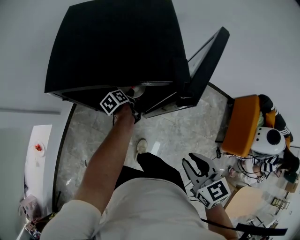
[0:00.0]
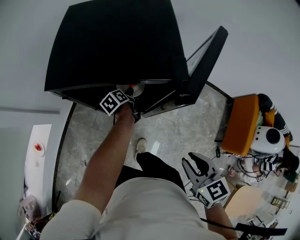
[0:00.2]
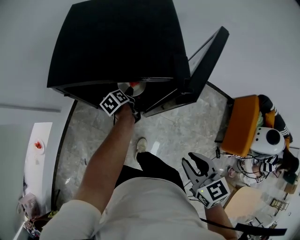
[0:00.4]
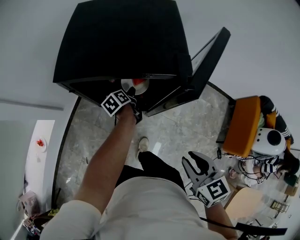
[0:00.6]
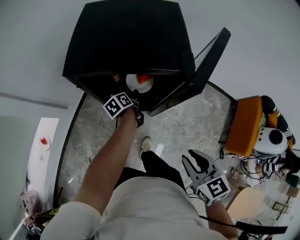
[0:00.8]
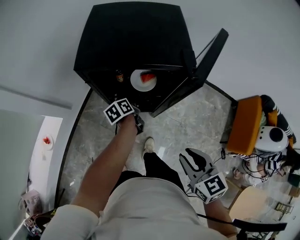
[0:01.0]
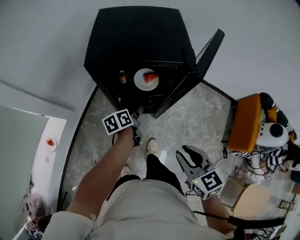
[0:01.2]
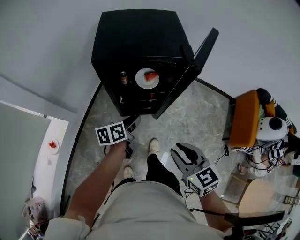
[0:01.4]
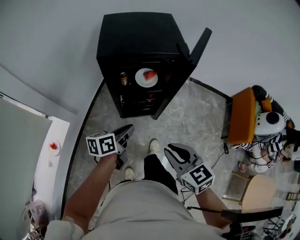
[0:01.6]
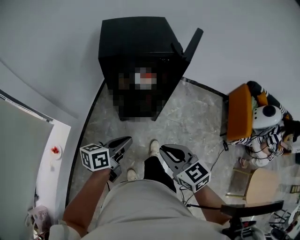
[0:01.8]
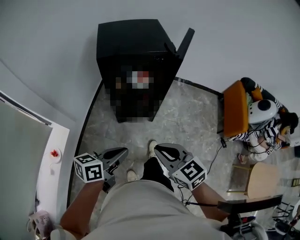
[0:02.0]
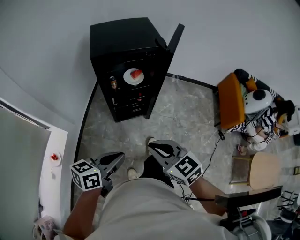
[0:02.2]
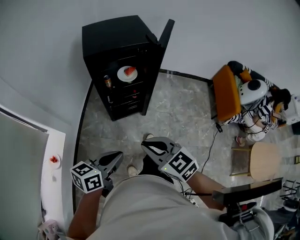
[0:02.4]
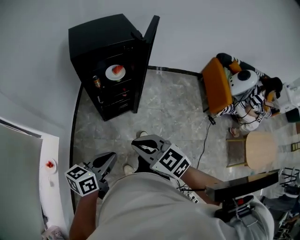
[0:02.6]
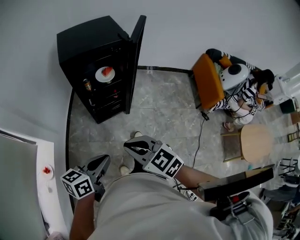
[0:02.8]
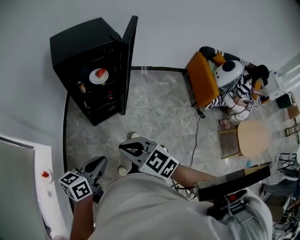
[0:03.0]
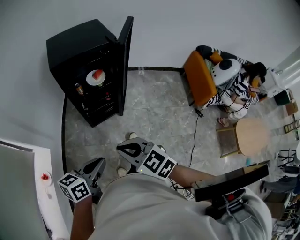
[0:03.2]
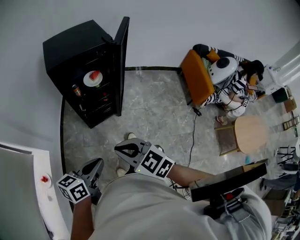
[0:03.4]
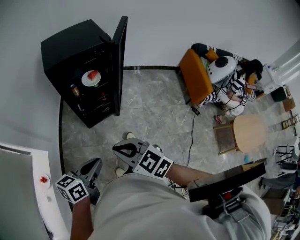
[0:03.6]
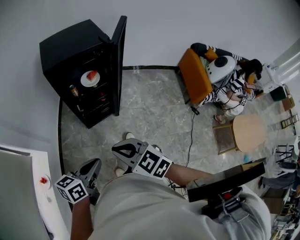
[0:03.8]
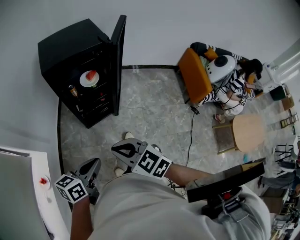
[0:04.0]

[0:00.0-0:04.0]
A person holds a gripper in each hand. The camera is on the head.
0:00.0 to 0:01.4: The right gripper shifts by about 15 cm.
0:01.4 to 0:02.6: The right gripper ends up roughly 20 cm from where it was, and closes.

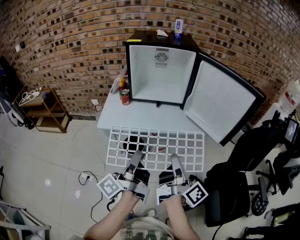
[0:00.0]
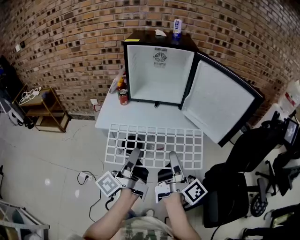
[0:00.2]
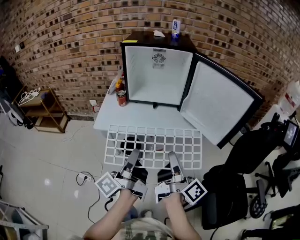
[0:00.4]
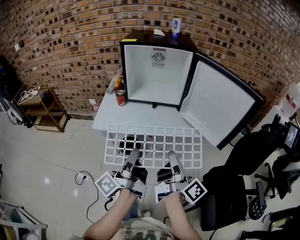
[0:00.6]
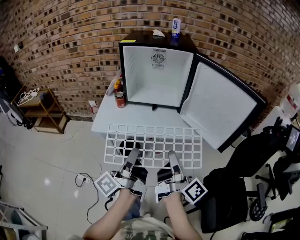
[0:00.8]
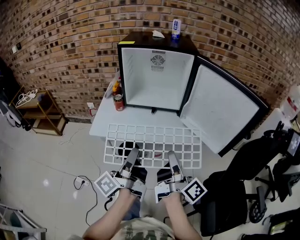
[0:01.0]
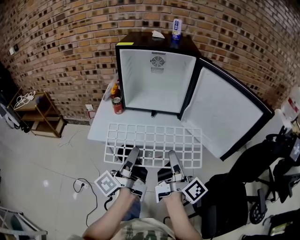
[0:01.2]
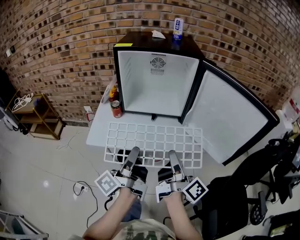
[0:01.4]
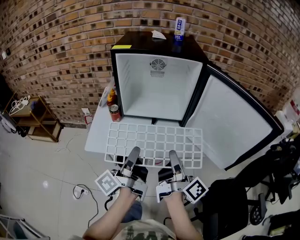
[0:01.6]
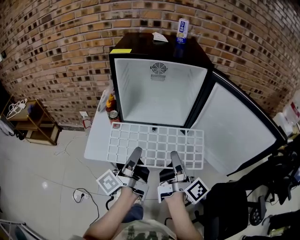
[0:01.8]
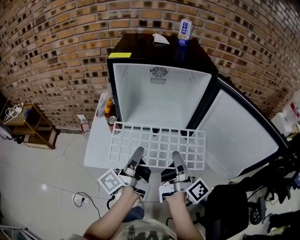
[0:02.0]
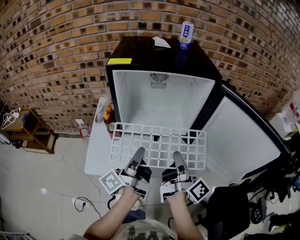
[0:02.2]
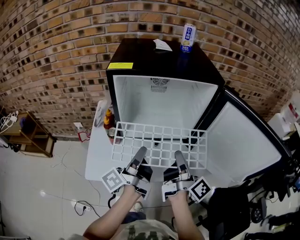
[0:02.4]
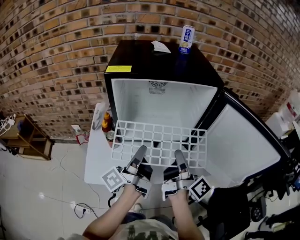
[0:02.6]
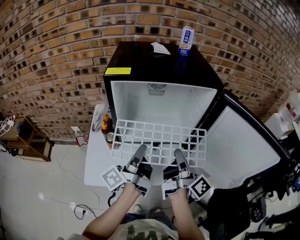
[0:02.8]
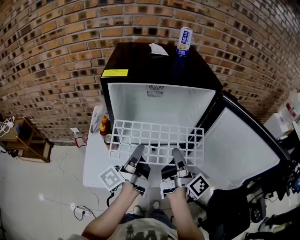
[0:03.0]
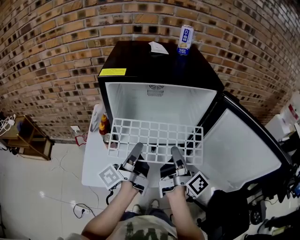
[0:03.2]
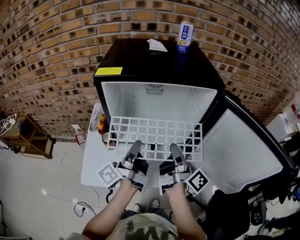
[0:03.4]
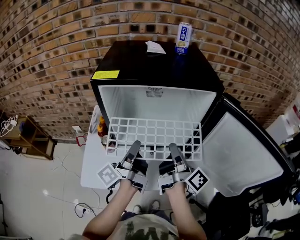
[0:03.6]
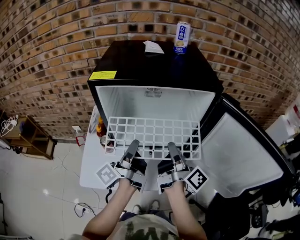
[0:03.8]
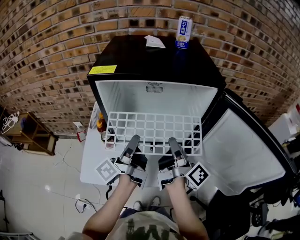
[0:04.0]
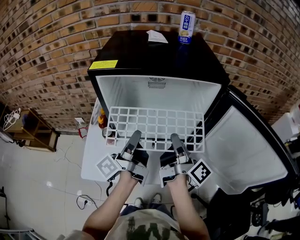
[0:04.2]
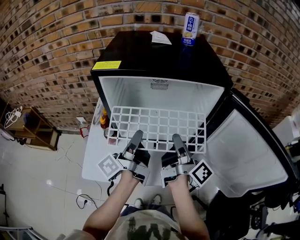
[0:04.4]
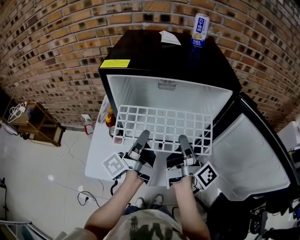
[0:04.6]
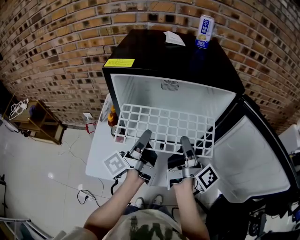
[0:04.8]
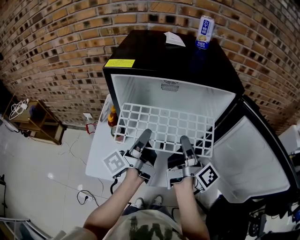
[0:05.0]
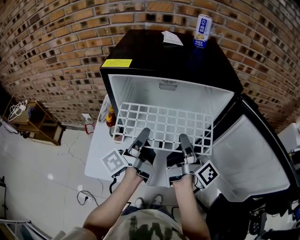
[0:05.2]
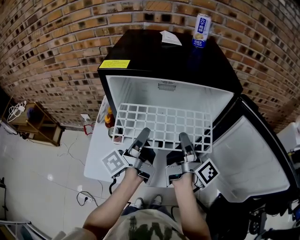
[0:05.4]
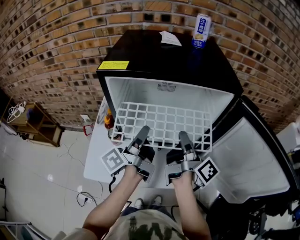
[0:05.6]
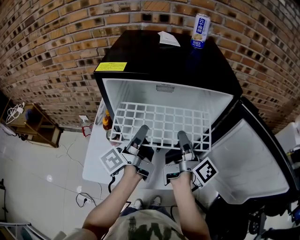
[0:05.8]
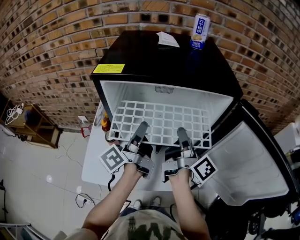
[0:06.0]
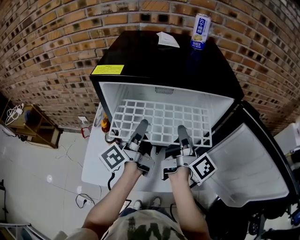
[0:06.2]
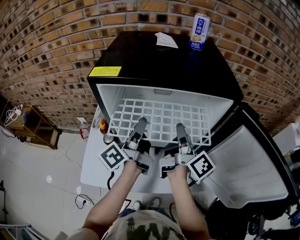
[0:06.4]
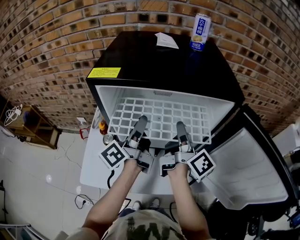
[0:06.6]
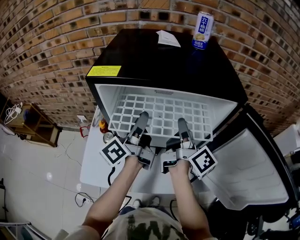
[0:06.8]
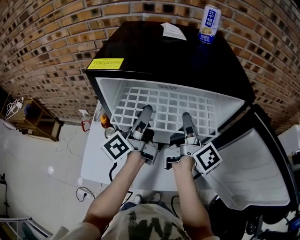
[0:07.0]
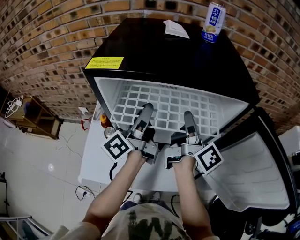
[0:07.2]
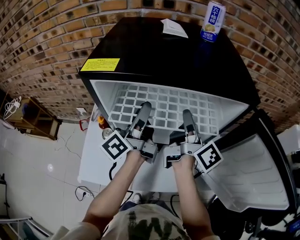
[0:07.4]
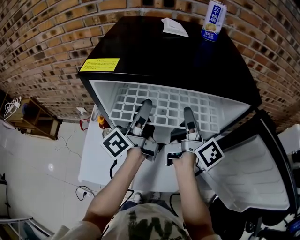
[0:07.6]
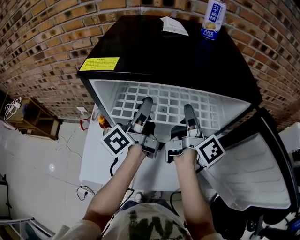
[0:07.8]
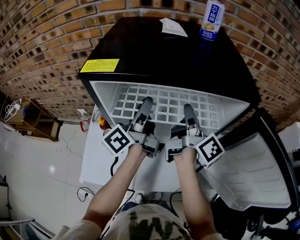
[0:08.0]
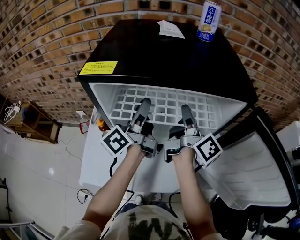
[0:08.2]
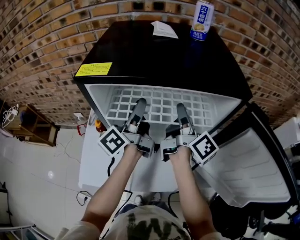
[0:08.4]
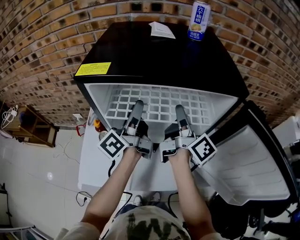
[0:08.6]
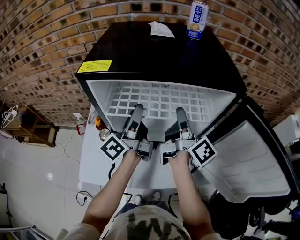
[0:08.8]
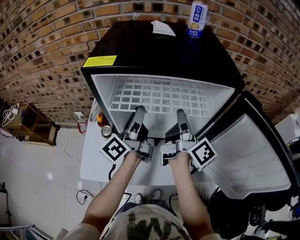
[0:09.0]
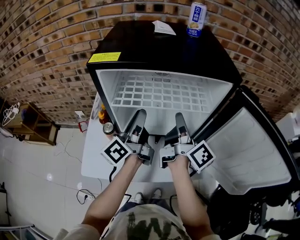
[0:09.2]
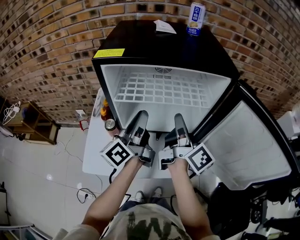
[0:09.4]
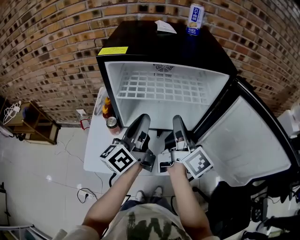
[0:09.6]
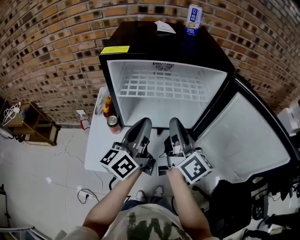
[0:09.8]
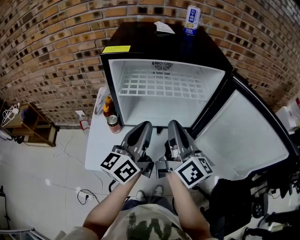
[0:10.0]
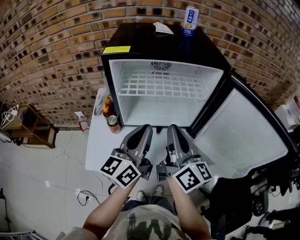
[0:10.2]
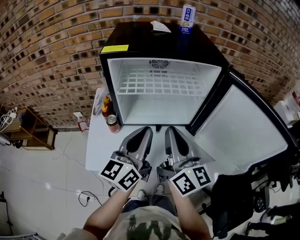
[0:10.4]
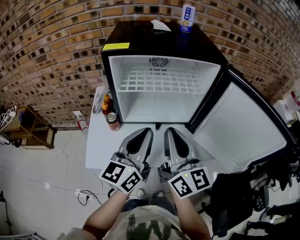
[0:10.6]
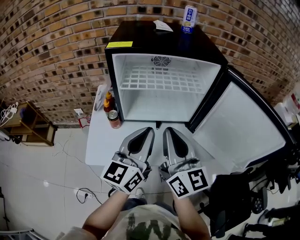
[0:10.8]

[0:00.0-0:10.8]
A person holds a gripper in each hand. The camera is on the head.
0:00.0 to 0:01.6: Both grippers travel together forward, some 20 cm.
0:01.6 to 0:03.0: Both grippers travel together forward, approximately 20 cm.
0:03.0 to 0:04.6: Both grippers travel together forward, roughly 5 cm.
0:04.6 to 0:06.2: Both grippers move forward, about 5 cm.
0:06.2 to 0:07.8: Both grippers travel together forward, some 10 cm.
0:07.8 to 0:09.2: The grippers both shift backward by some 10 cm.
0:09.2 to 0:10.8: The right gripper shifts approximately 20 cm backward and to the left, and twists approximately 50 degrees counterclockwise, seen from behind. The left gripper moves backward, roughly 15 cm, rotates around the line of its fingers by roughly 40 degrees, clockwise from behind, and closes.

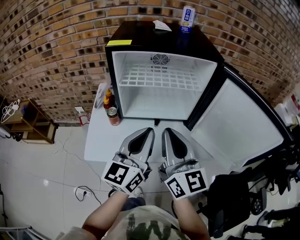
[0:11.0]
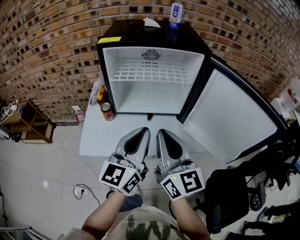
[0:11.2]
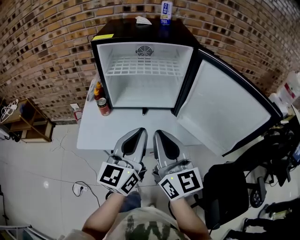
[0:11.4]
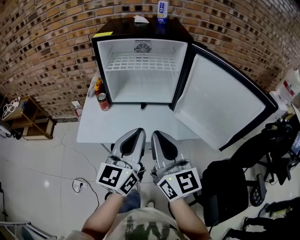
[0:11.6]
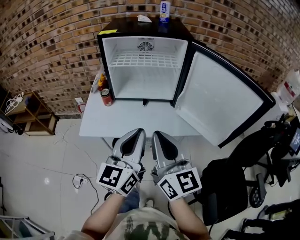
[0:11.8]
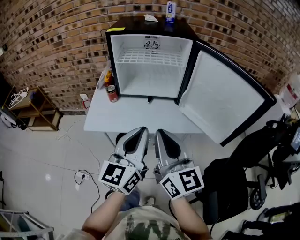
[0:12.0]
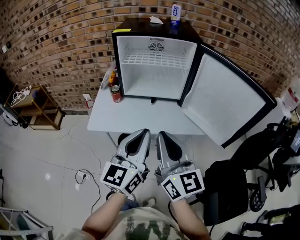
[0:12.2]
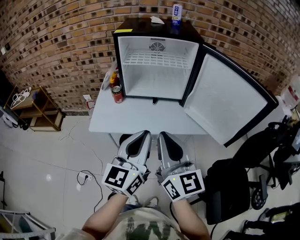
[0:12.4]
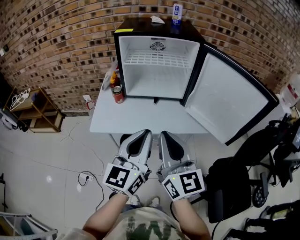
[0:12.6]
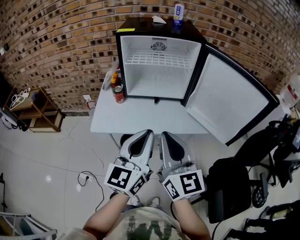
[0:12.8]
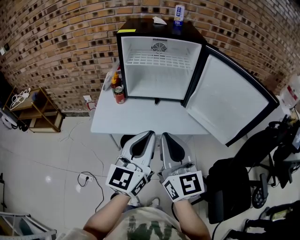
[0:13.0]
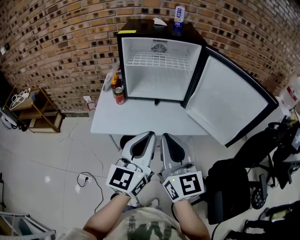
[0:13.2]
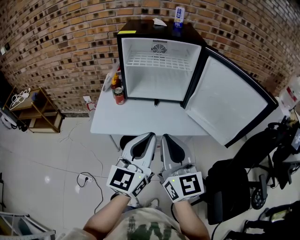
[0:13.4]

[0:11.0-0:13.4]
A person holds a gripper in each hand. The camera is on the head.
0:11.0 to 0:12.2: The two grippers go roughly 20 cm backward.
0:12.2 to 0:13.4: The grippers move only a little.

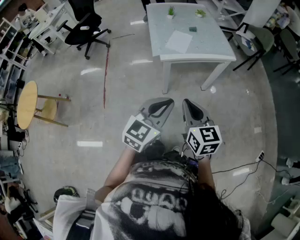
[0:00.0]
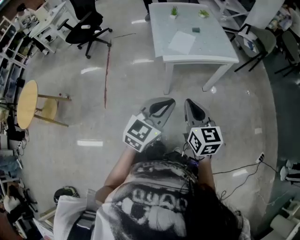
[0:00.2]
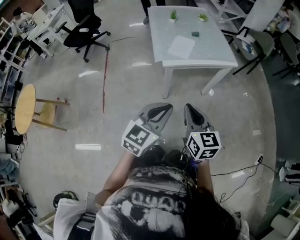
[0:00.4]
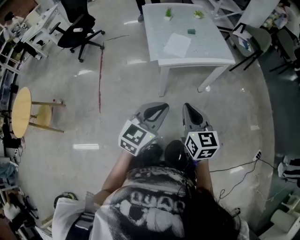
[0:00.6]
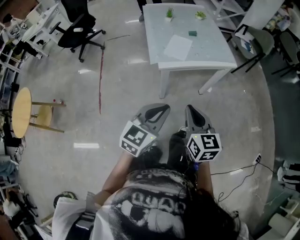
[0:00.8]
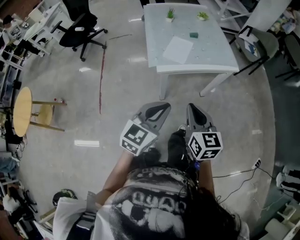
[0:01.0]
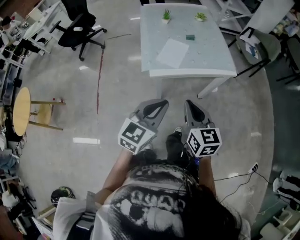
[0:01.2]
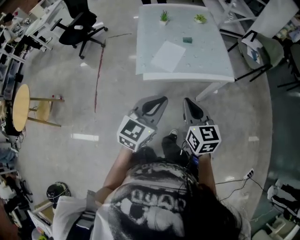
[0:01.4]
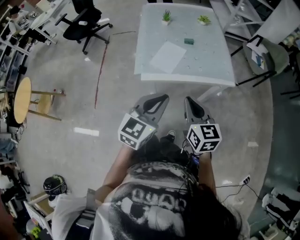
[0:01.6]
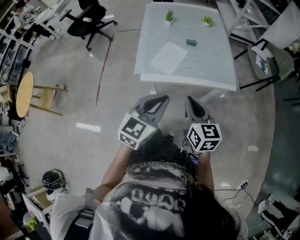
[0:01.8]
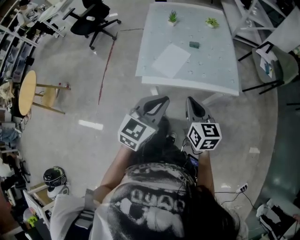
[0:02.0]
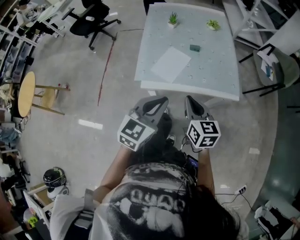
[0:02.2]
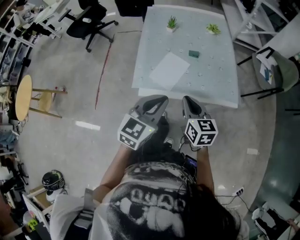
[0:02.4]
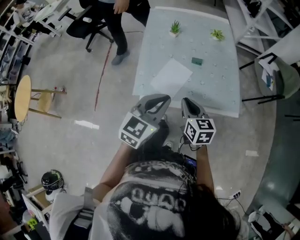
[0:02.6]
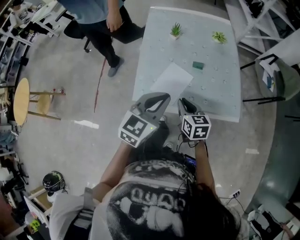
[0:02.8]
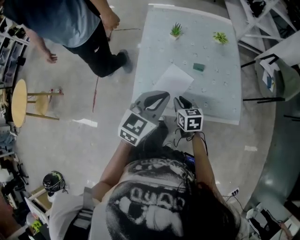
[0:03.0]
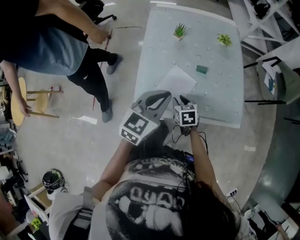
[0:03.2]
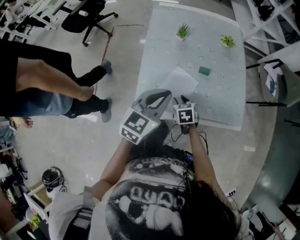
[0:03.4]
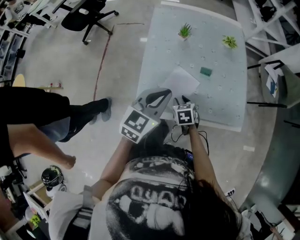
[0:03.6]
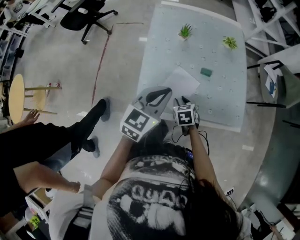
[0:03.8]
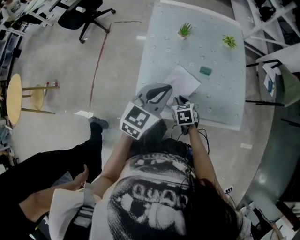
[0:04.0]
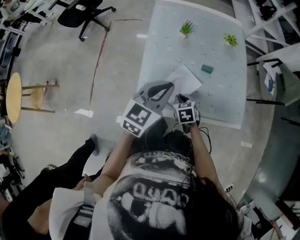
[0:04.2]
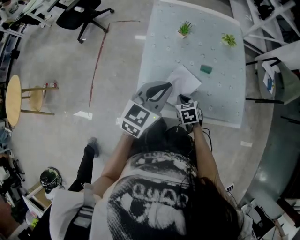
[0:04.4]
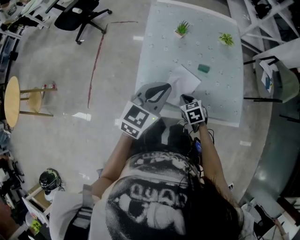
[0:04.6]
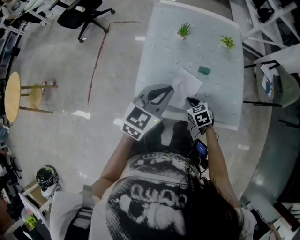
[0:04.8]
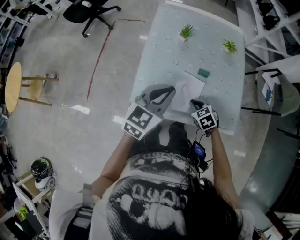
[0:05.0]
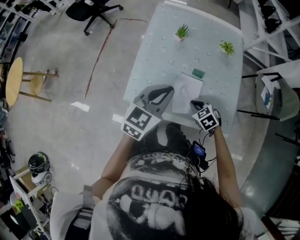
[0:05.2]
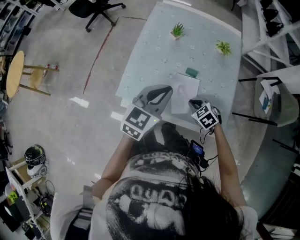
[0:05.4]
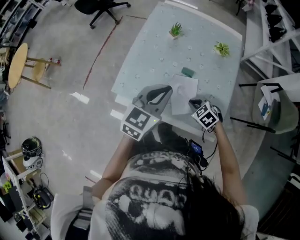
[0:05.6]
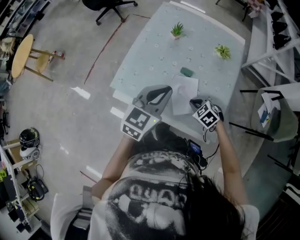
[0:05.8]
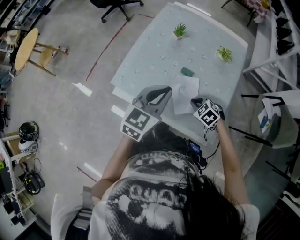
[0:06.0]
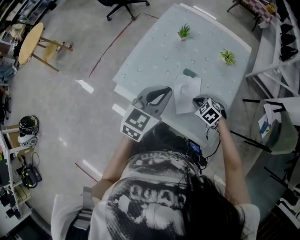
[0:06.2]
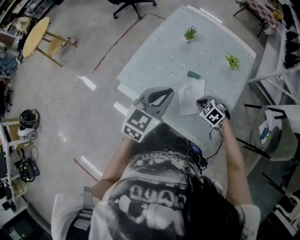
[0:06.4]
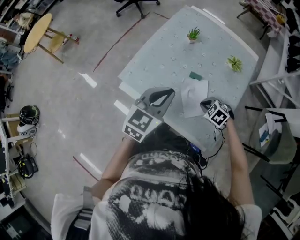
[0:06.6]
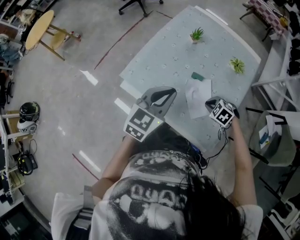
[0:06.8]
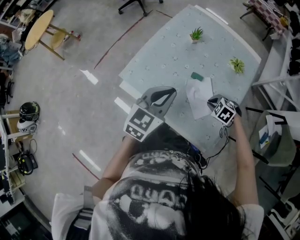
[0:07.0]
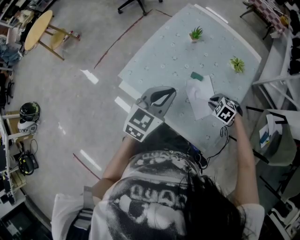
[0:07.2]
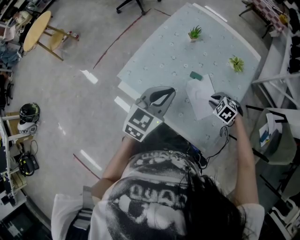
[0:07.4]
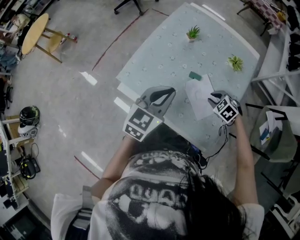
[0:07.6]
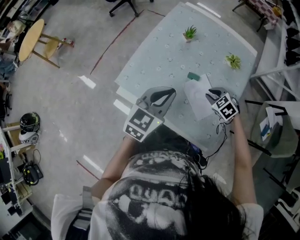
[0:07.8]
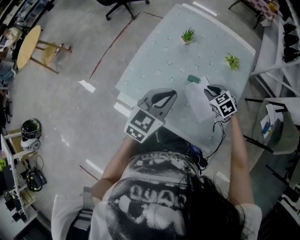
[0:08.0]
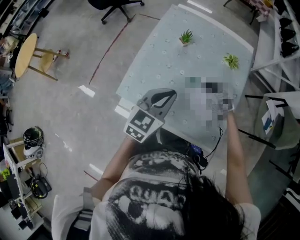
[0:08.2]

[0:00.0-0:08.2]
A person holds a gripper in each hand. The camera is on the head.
0:00.0 to 0:01.6: The two grippers go about 25 cm forward.
0:01.6 to 0:03.2: The left gripper heads forward, covering some 25 cm. The right gripper shifts about 35 cm forward and downward, tilts its fingers approximately 30 degrees downward, and opens up.
0:03.2 to 0:05.0: The right gripper heads to the right, covering approximately 5 cm, changes its angle by roughly 30 degrees, and closes its fingers.
0:05.0 to 0:06.6: The left gripper shifts by roughly 10 cm, and changes its angle by roughly 30 degrees. Meanwhile the right gripper shifts by approximately 15 cm, and rotates around the line of its fingers by about 40 degrees, counterclockwise from behind.
0:06.6 to 0:08.2: The right gripper ends up some 15 cm from where it was, and rotates roughly 40 degrees. The left gripper moves about 5 cm.
